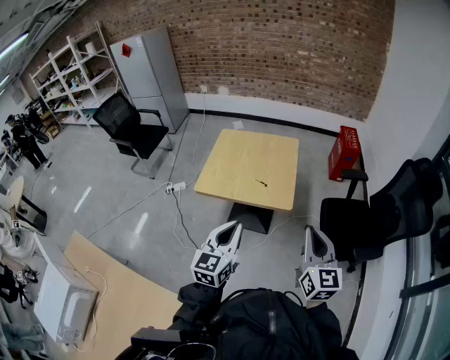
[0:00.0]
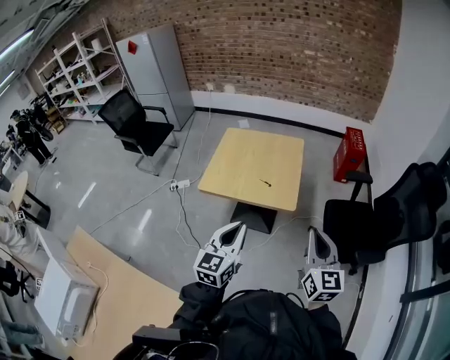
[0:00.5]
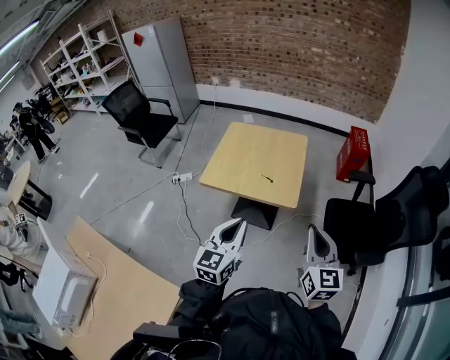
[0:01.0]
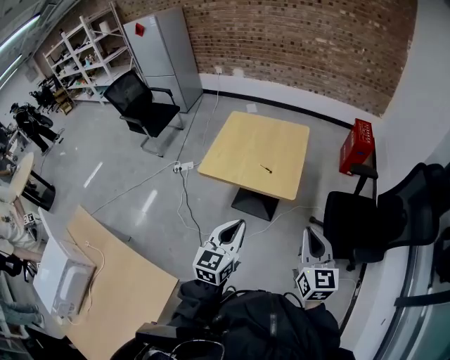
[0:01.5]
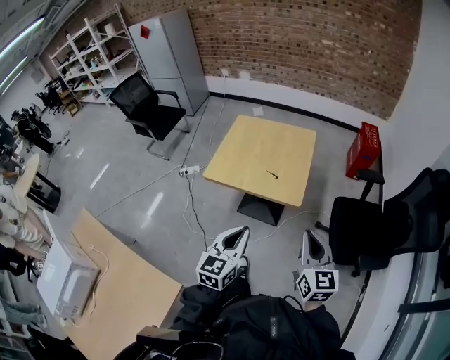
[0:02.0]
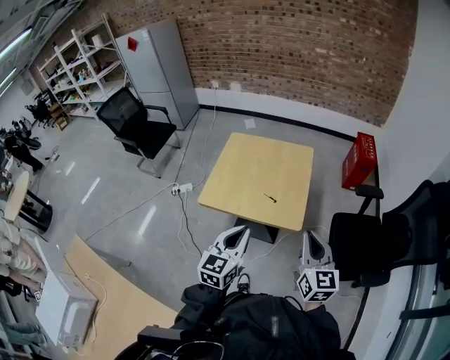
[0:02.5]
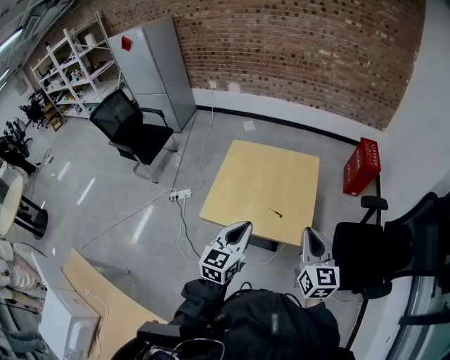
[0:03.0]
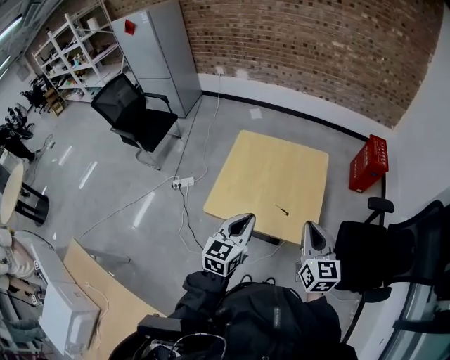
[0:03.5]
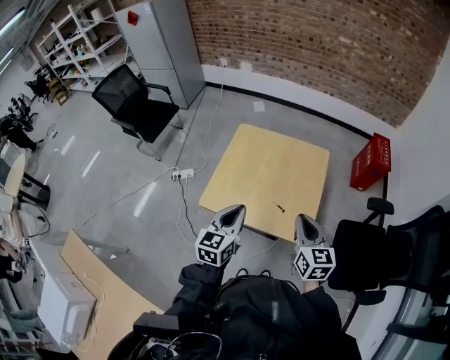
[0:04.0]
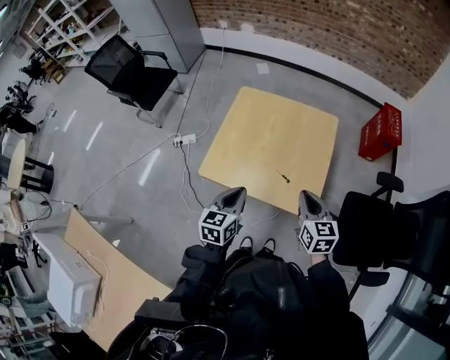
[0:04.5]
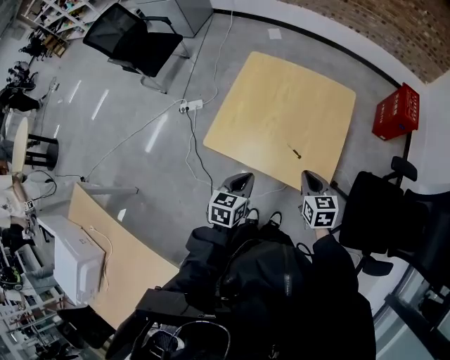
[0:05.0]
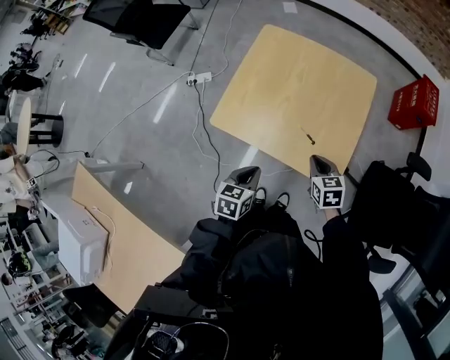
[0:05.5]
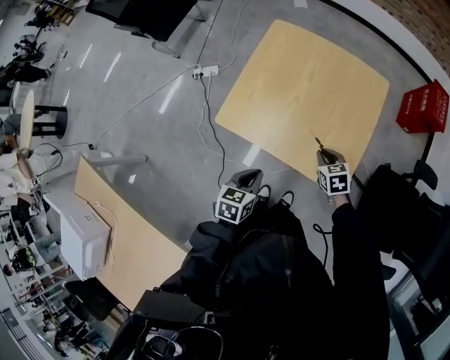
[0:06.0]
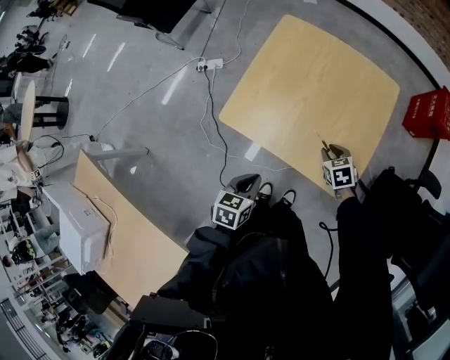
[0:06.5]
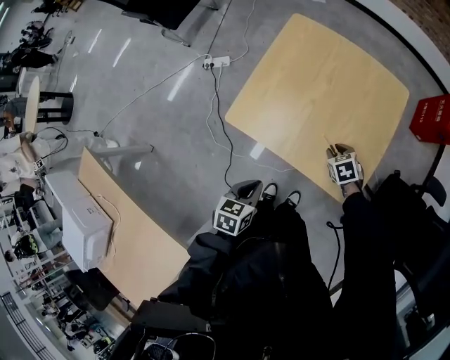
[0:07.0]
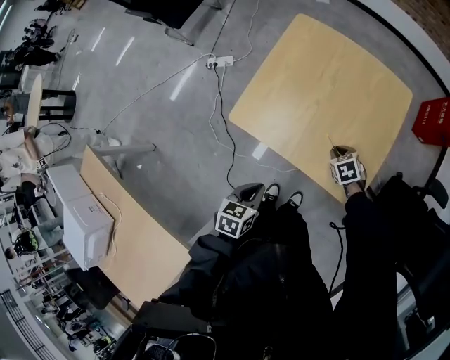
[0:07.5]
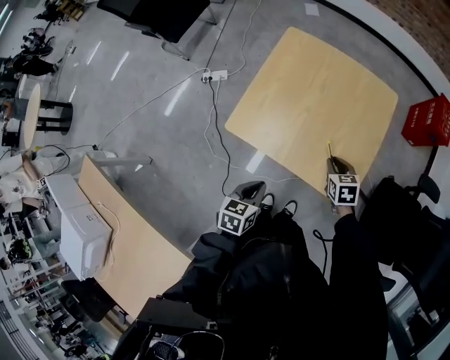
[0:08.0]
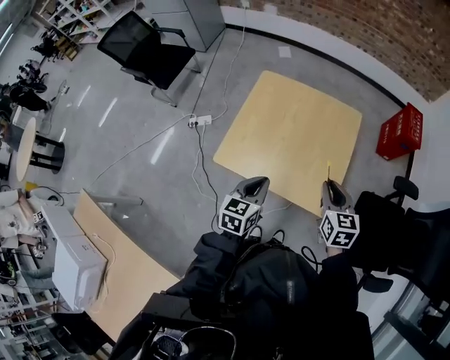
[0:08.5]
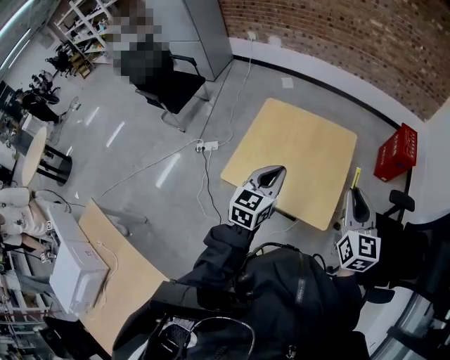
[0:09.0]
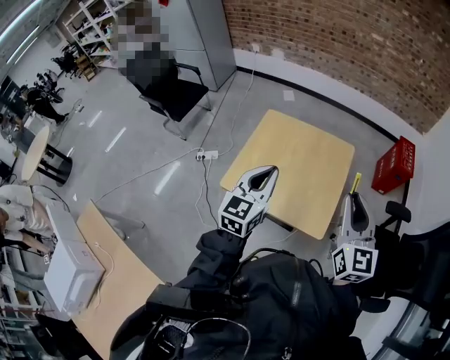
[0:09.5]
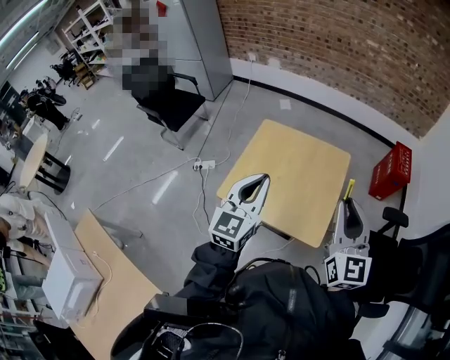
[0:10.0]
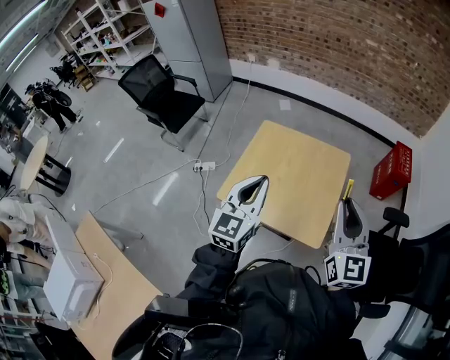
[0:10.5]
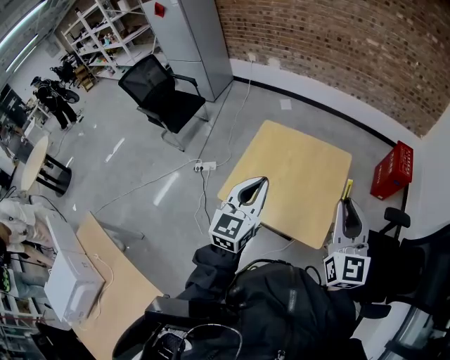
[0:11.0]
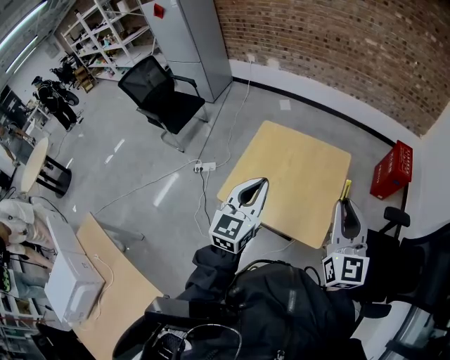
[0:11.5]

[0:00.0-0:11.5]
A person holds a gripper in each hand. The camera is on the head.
0:00.0 to 0:02.0: The left gripper moves some 5 cm; the right gripper travels downward by about 5 cm.
0:02.0 to 0:04.0: Both grippers move forward and to the left, some 30 cm.
0:04.0 to 0:06.0: The two grippers go approximately 30 cm downward. The left gripper angles its fingers downward, by approximately 30 degrees. The right gripper tips its fingers downward by some 40 degrees.
0:06.0 to 0:07.5: The right gripper moves downward, roughly 10 cm.
0:07.5 to 0:09.5: The grippers both shift upward by roughly 40 cm. The right gripper points its fingers approximately 70 degrees further upward; the left gripper tilts its fingers roughly 40 degrees upward.
0:09.5 to 0:11.5: The grippers stay close to where they were, moving slightly.

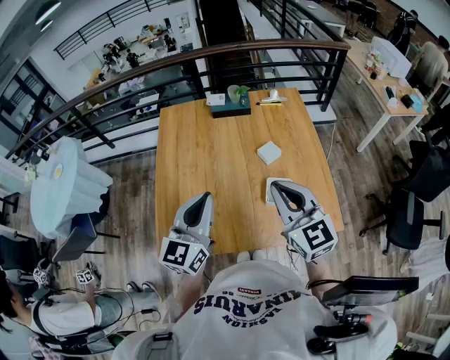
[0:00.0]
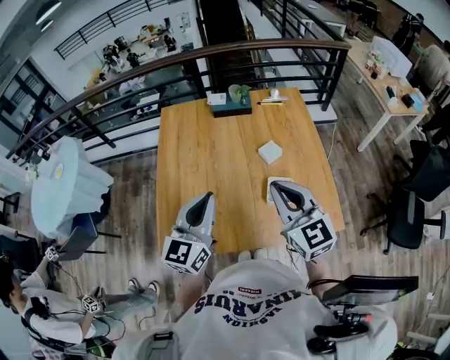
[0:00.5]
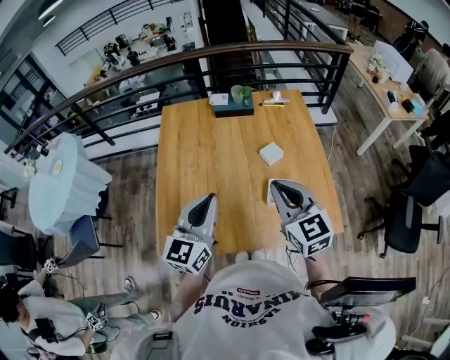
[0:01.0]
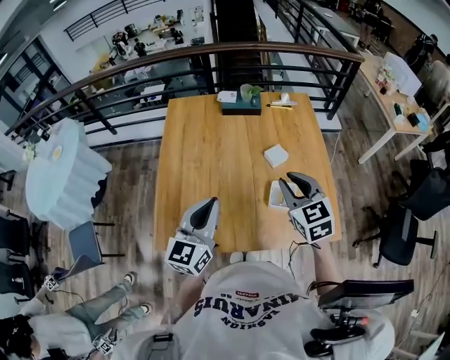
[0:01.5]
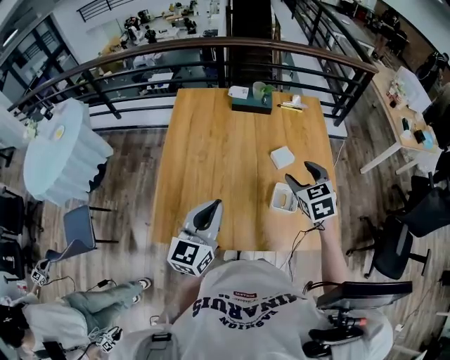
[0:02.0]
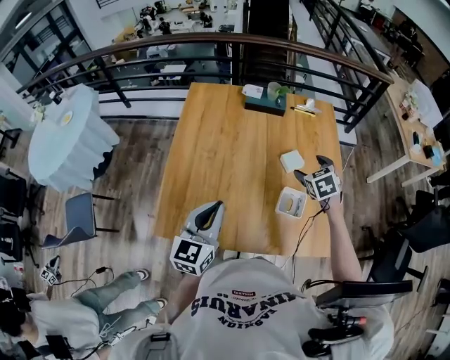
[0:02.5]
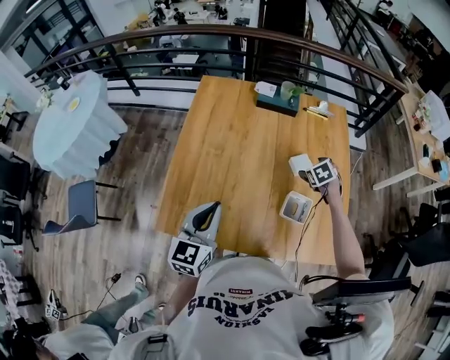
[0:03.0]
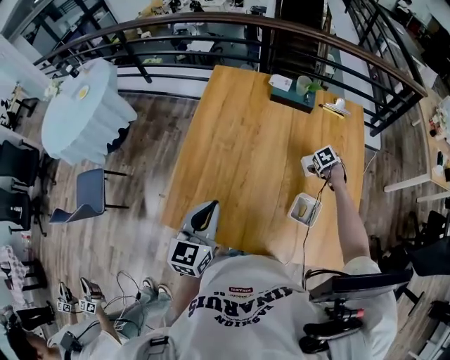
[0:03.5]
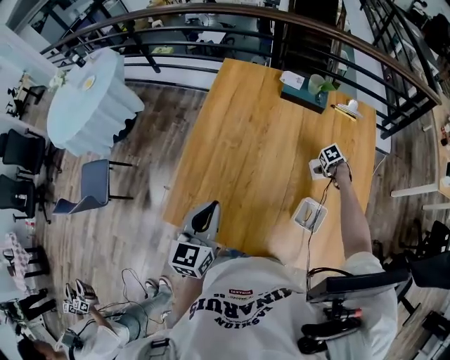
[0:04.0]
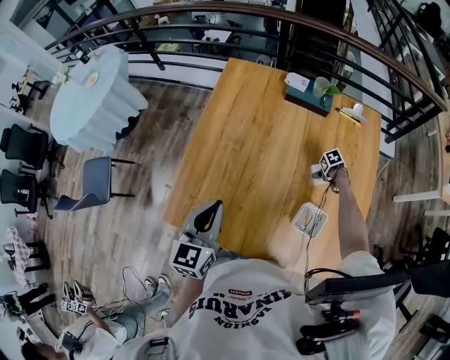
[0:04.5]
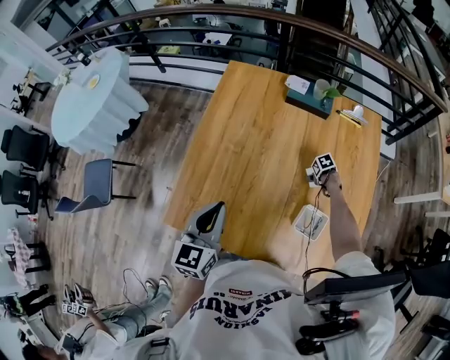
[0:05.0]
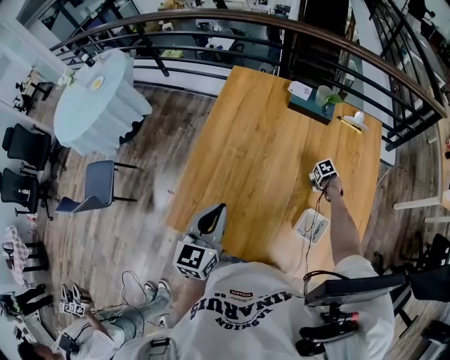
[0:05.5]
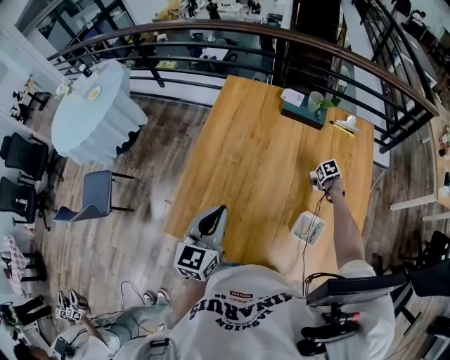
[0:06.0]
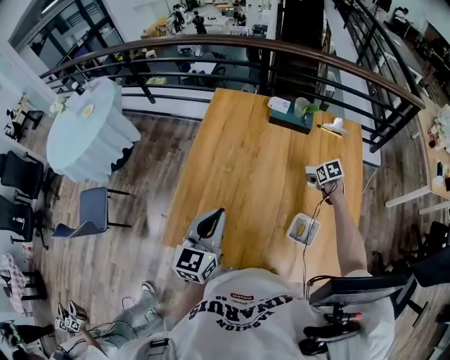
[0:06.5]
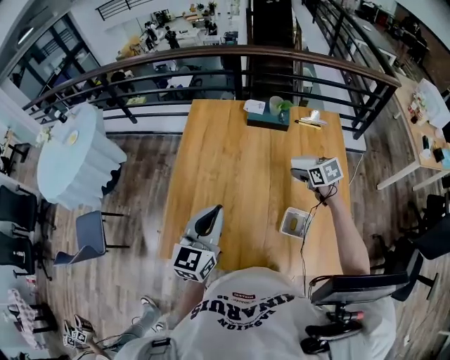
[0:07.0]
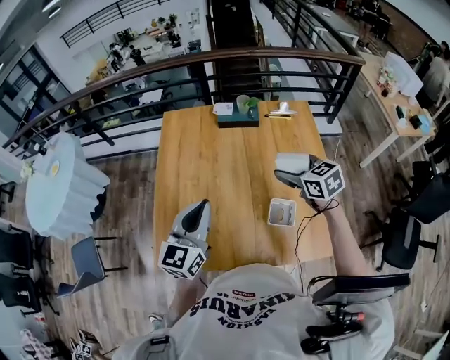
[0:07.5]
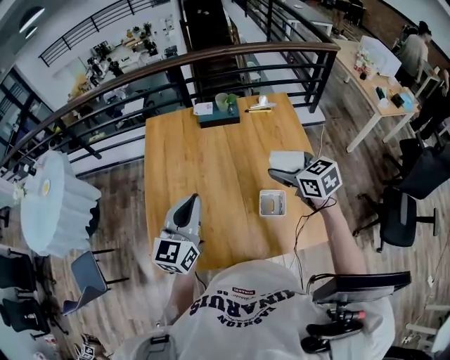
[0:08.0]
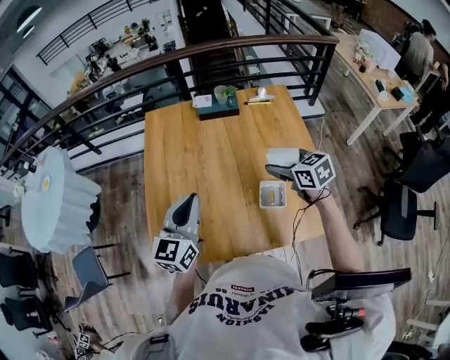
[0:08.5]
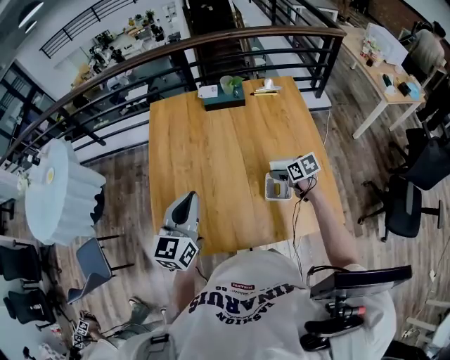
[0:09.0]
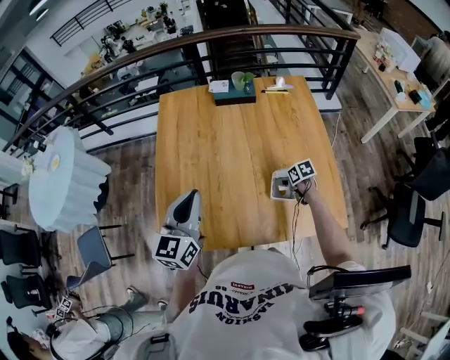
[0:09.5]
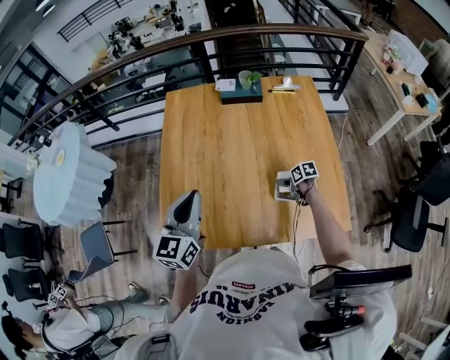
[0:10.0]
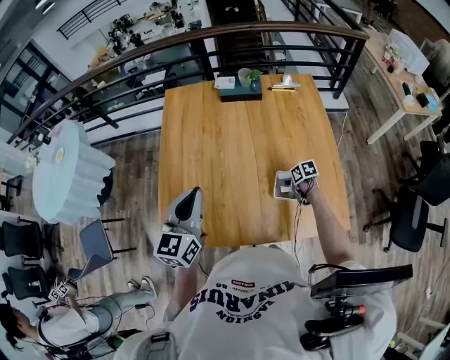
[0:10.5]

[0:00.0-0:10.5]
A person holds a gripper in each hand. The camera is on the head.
0:00.0 to 0:02.0: The left gripper moves downward, roughly 5 cm; the right gripper travels forward and downward by roughly 15 cm, tips its fingers downward by approximately 30 degrees, and opens up.
0:02.0 to 0:04.0: The left gripper ends up about 10 cm from where it was, and rotates approximately 20 degrees, while the right gripper shifts approximately 35 cm downward, angles its fingers downward, by some 50 degrees, and opens.
0:04.0 to 0:06.5: The right gripper shifts roughly 10 cm upward, and changes its angle by some 20 degrees.
0:06.5 to 0:08.5: The right gripper is displaced upward and backward by some 30 cm, and angles its fingers upward, by approximately 30 degrees. Meanwhile the left gripper travels to the right by roughly 5 cm.
0:08.5 to 0:10.5: The right gripper travels downward by approximately 30 cm, and changes its angle by some 40 degrees.

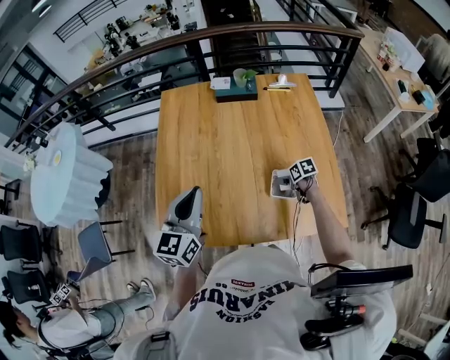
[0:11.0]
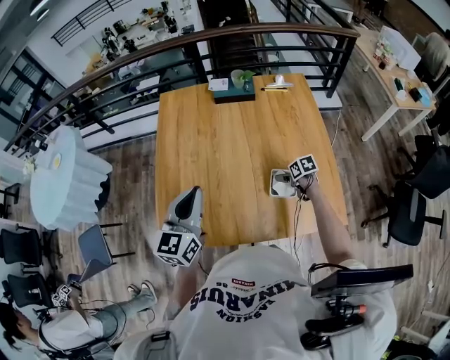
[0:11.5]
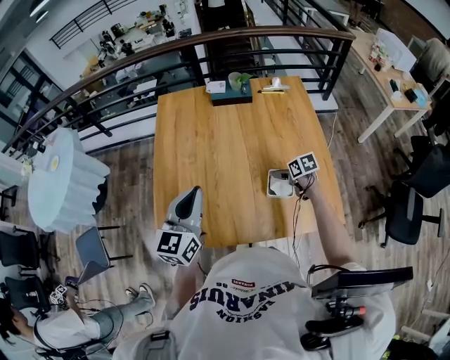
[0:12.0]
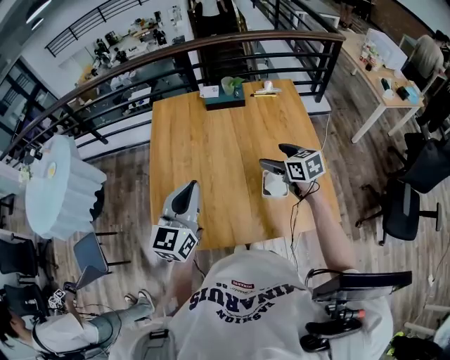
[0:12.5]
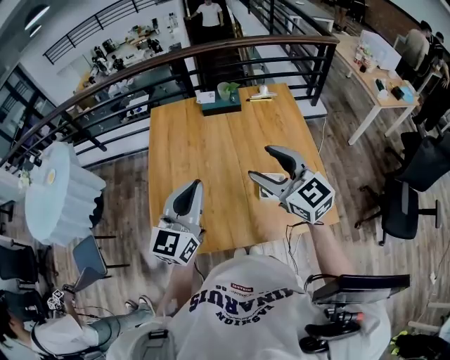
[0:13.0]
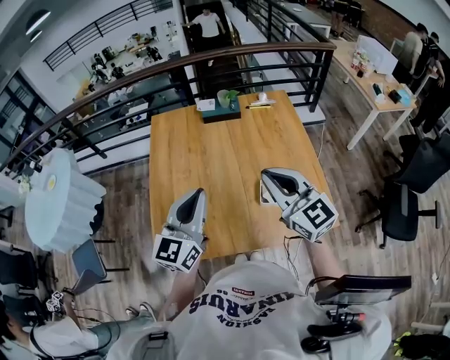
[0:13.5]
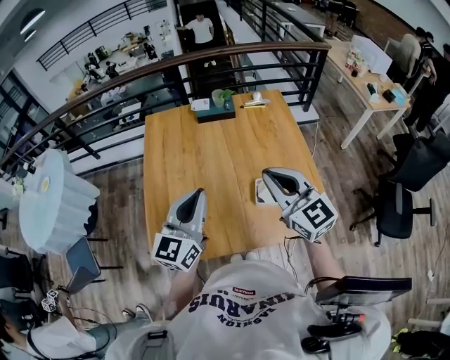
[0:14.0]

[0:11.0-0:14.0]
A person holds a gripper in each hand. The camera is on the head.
0:11.0 to 0:12.5: The right gripper goes approximately 25 cm upward, and turns by some 40 degrees.
0:12.5 to 0:14.0: The right gripper is displaced upward and backward by some 20 cm, turns by about 40 degrees, and closes its fingers.

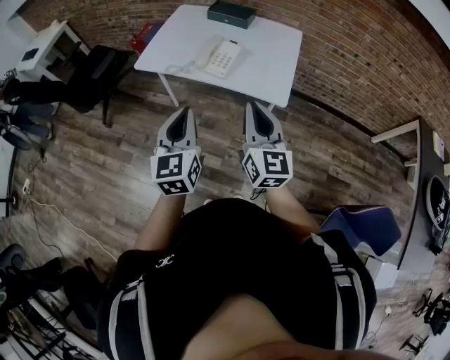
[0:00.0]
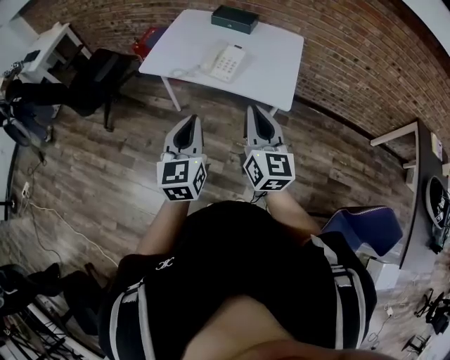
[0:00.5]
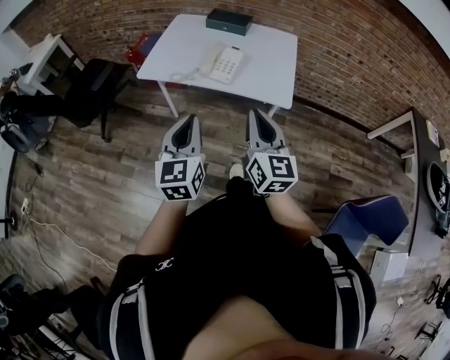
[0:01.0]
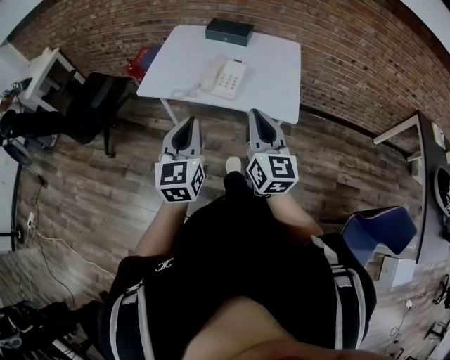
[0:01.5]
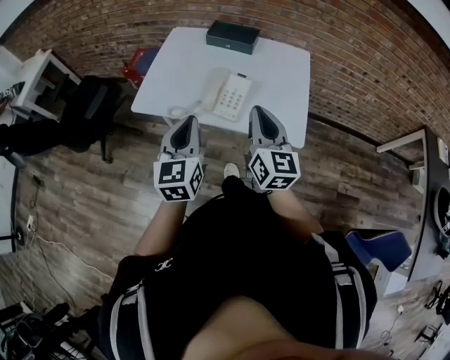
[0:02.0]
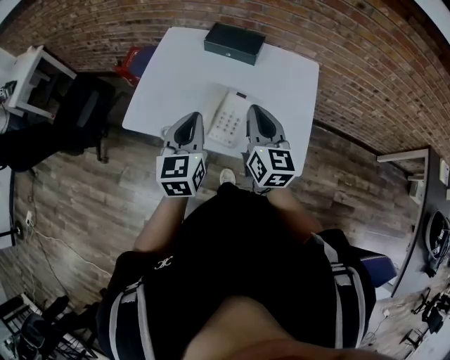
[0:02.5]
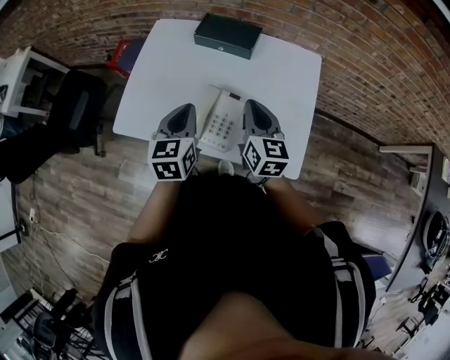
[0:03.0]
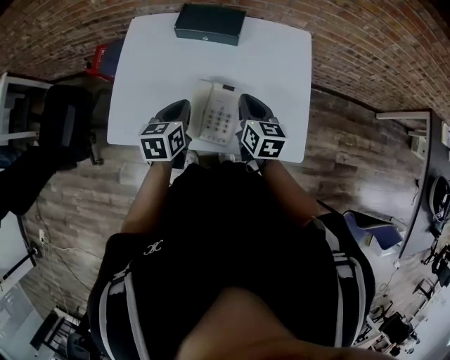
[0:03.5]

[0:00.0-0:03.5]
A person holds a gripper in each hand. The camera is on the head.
0:00.0 to 0:02.0: Both grippers move forward, about 20 cm.
0:02.0 to 0:03.5: Both grippers travel together forward and downward, approximately 30 cm. The left gripper changes its angle by roughly 40 degrees; the right gripper swivels some 30 degrees.
